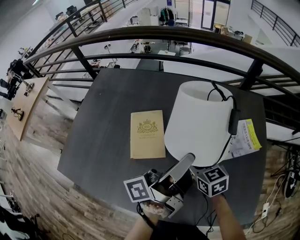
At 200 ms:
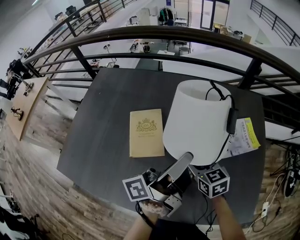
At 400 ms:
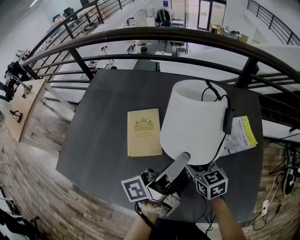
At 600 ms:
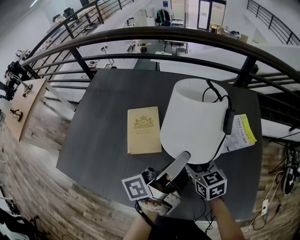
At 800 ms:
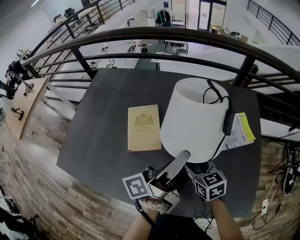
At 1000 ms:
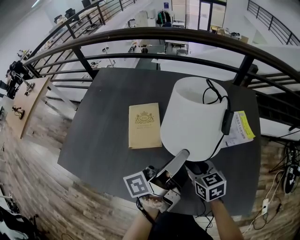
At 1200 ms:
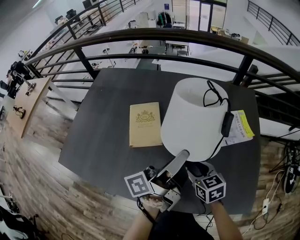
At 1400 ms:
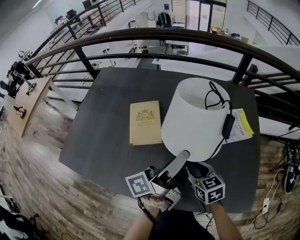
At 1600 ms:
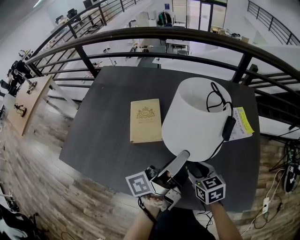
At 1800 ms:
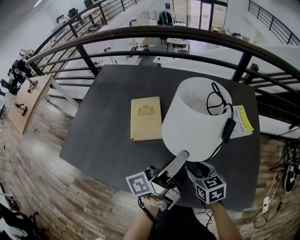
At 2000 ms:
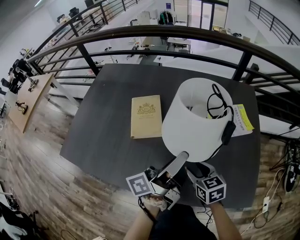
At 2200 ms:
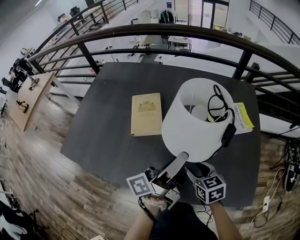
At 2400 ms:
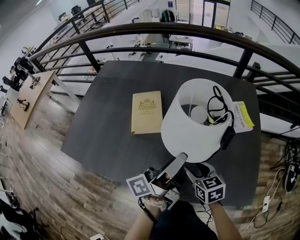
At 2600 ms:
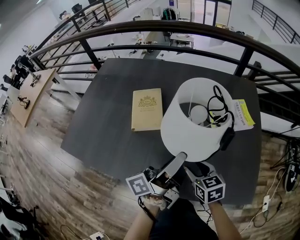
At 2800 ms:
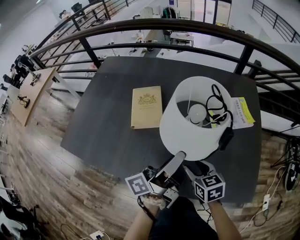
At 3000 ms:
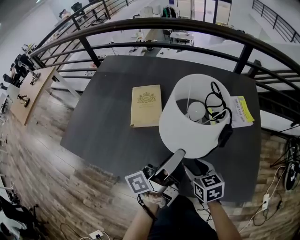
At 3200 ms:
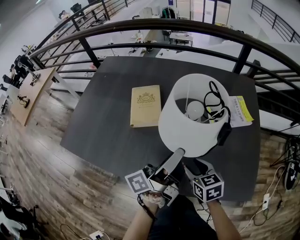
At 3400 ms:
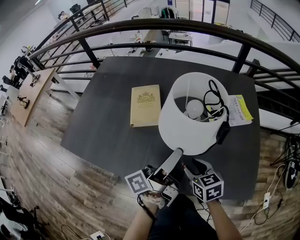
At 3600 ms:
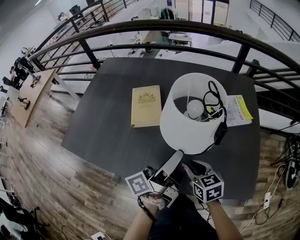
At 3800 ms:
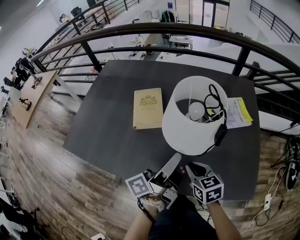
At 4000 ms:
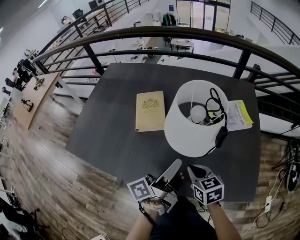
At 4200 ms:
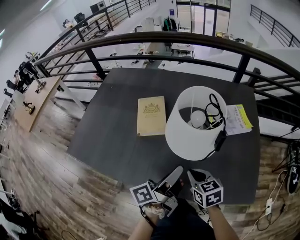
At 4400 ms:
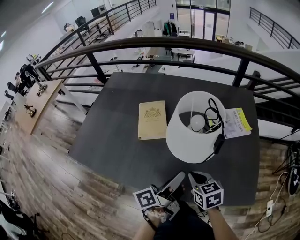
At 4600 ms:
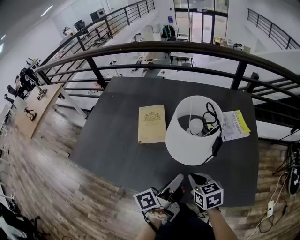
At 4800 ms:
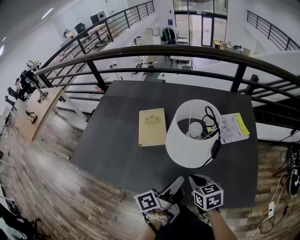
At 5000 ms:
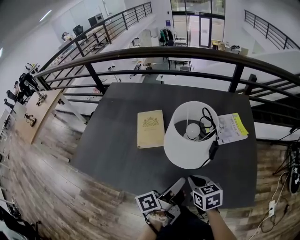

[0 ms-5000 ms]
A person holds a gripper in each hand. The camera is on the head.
0 ms to 1600 ms: The right gripper changes place by some 15 cm.
1600 ms to 3400 ms: The right gripper changes place by roughly 5 cm.
3400 ms to 5000 ms: The right gripper closes its fingers.

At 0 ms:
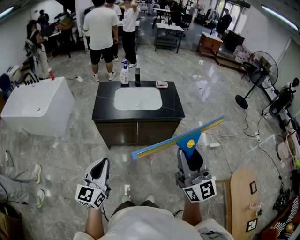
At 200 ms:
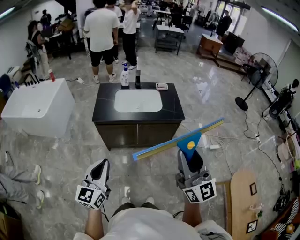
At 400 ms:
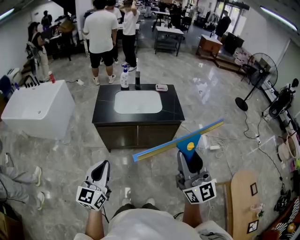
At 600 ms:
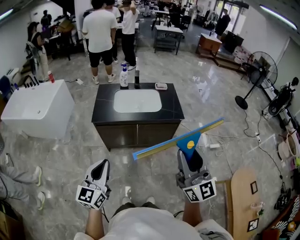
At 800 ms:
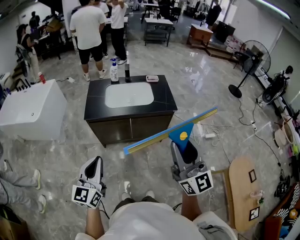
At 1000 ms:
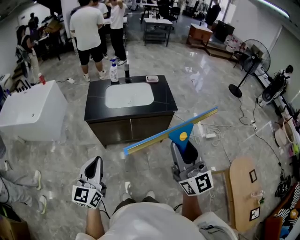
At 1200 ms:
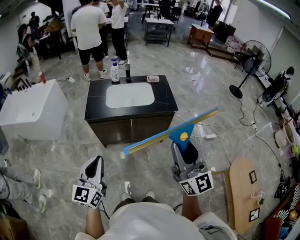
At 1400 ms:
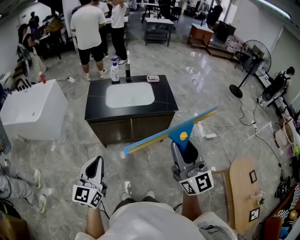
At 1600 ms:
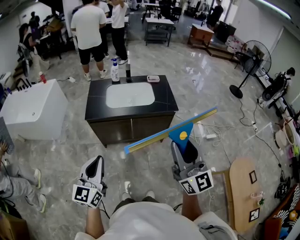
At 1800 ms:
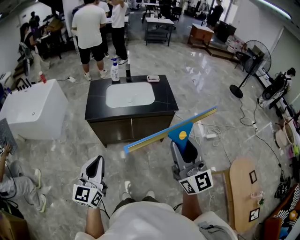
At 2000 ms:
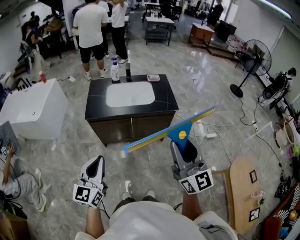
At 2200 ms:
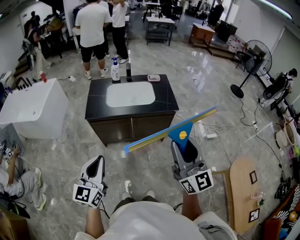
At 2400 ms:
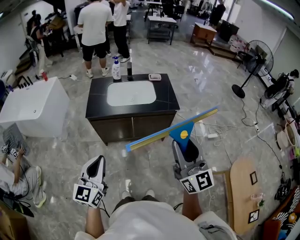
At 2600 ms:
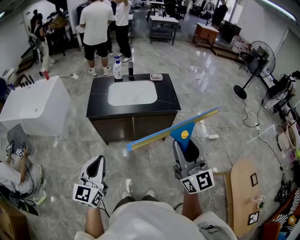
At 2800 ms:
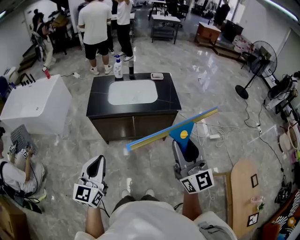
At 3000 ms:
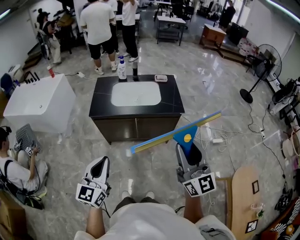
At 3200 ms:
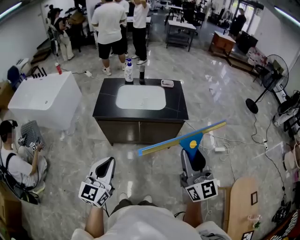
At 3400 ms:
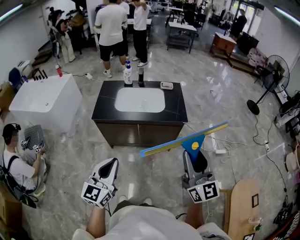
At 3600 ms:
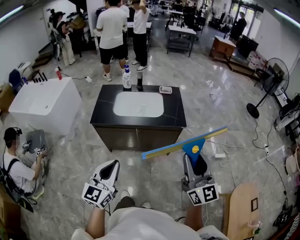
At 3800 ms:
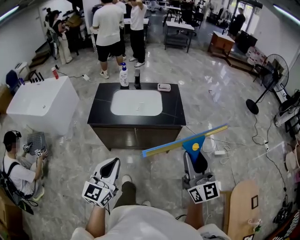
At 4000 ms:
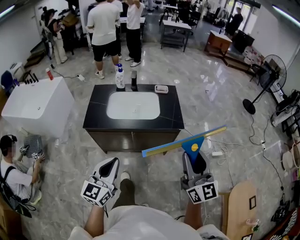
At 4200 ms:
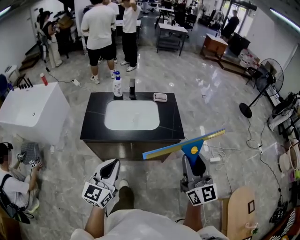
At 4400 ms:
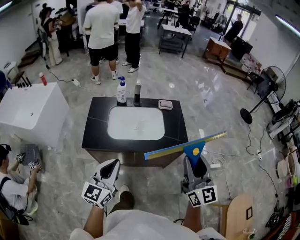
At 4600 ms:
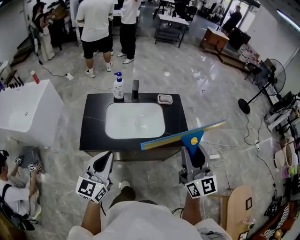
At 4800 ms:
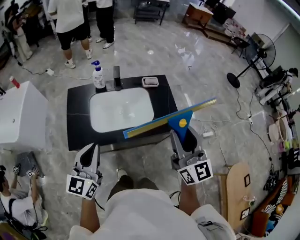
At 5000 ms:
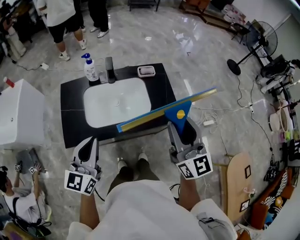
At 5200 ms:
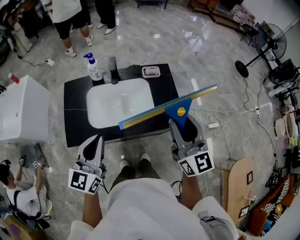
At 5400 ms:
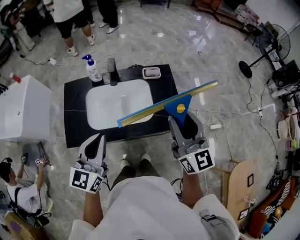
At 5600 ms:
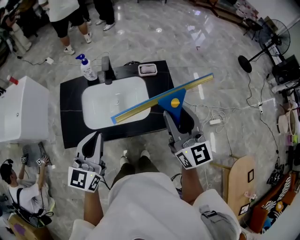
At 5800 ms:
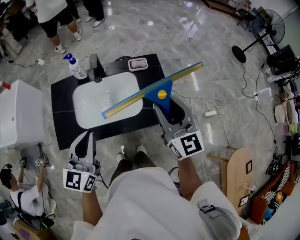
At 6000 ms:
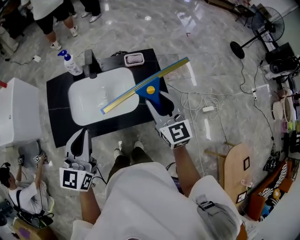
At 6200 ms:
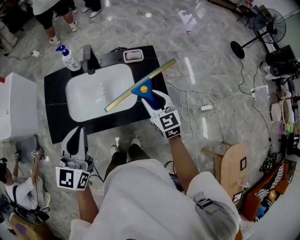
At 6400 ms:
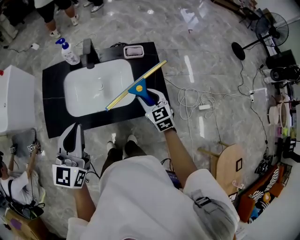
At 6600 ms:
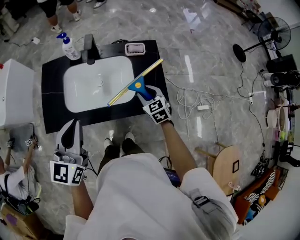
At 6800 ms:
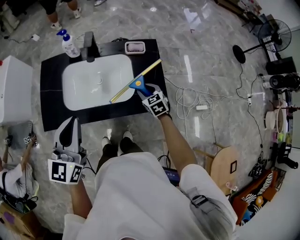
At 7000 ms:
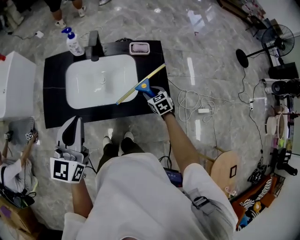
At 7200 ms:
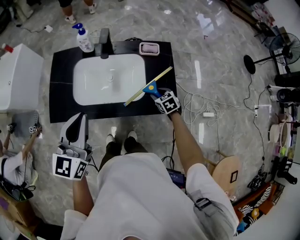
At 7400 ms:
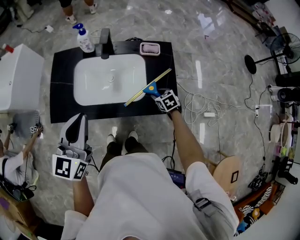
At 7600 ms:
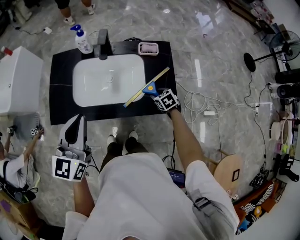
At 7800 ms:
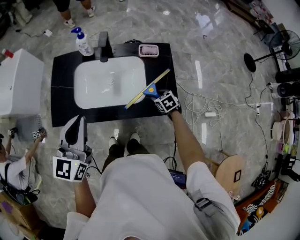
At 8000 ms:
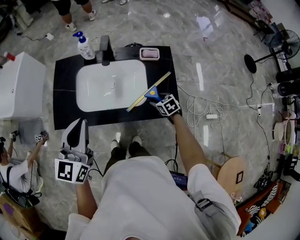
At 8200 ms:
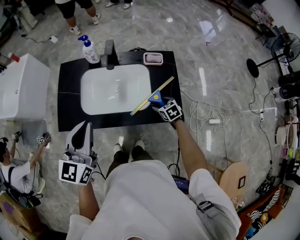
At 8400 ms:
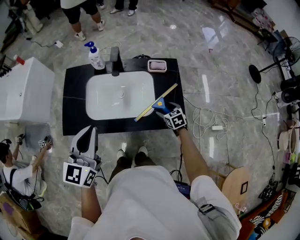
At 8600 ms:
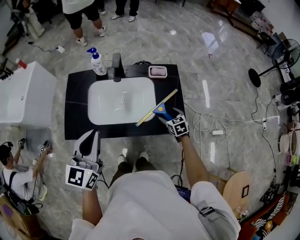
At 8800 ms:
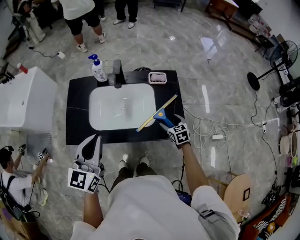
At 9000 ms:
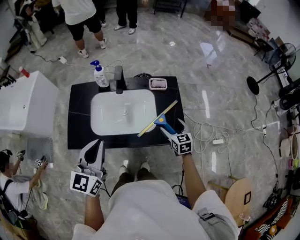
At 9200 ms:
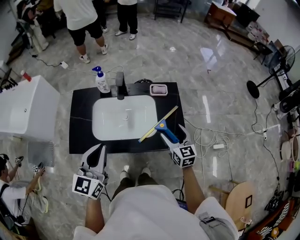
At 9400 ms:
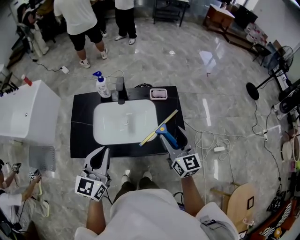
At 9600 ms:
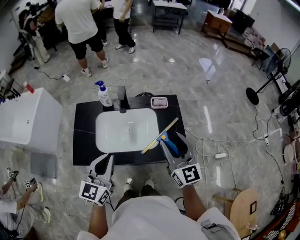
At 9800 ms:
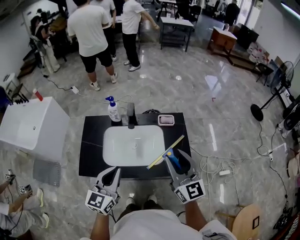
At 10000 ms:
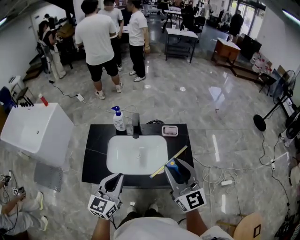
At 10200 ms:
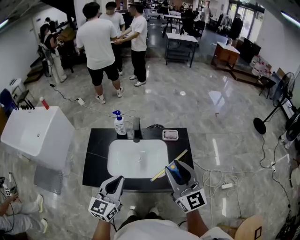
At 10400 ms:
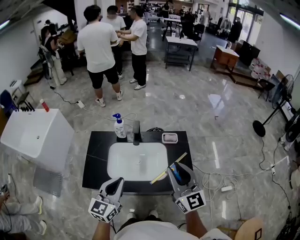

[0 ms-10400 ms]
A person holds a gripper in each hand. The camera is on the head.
0 ms to 1400 ms: The two grippers keep their place.
1400 ms to 3000 ms: The right gripper shifts by some 5 cm.
3000 ms to 4400 ms: The grippers both shift forward by approximately 25 cm.
4400 ms to 6000 ms: The right gripper shifts roughly 30 cm forward and downward, and changes its angle by approximately 20 degrees; the left gripper is displaced forward by roughly 20 cm.
6000 ms to 7400 ms: The right gripper shifts roughly 30 cm downward, and angles its fingers downward, by roughly 50 degrees.
7400 ms to 9000 ms: The right gripper shifts approximately 10 cm upward, rotates approximately 30 degrees, and opens its fingers.
9000 ms to 10400 ms: The right gripper travels upward by some 30 cm, angles its fingers upward, by about 40 degrees, and closes its fingers.

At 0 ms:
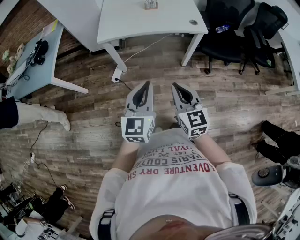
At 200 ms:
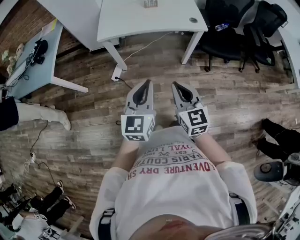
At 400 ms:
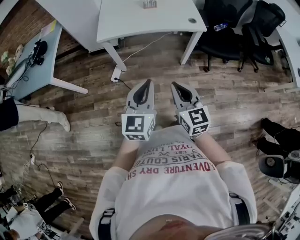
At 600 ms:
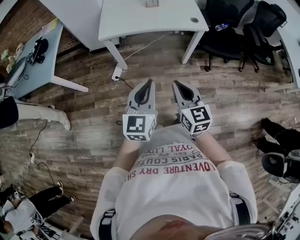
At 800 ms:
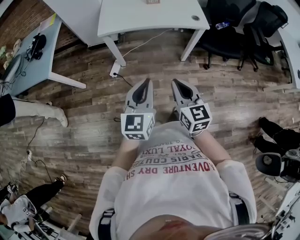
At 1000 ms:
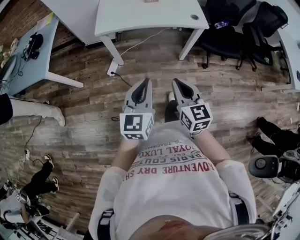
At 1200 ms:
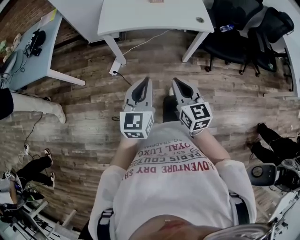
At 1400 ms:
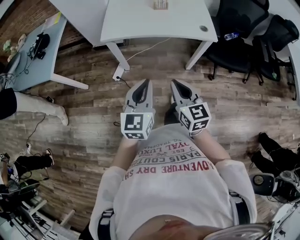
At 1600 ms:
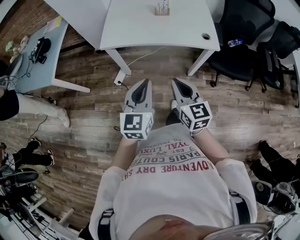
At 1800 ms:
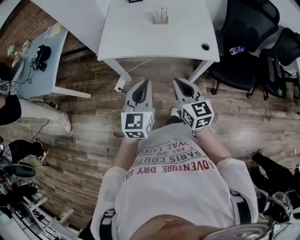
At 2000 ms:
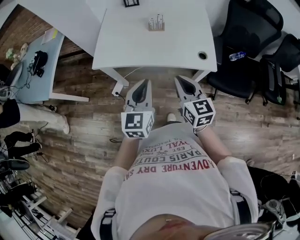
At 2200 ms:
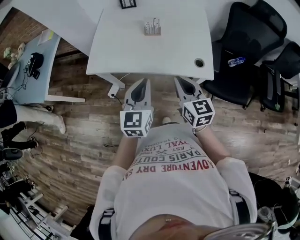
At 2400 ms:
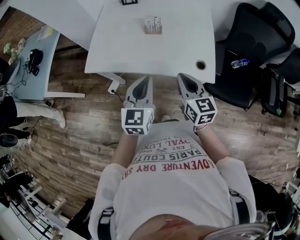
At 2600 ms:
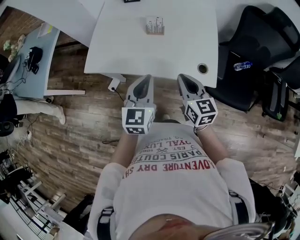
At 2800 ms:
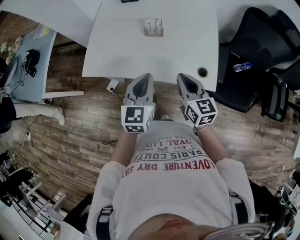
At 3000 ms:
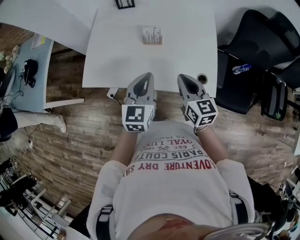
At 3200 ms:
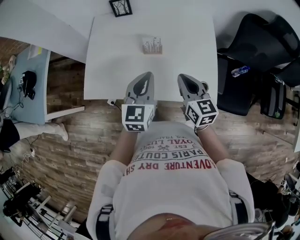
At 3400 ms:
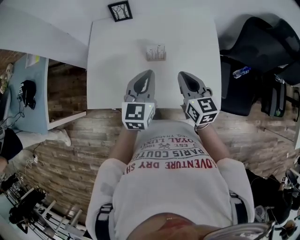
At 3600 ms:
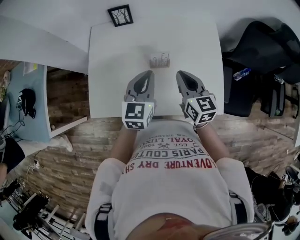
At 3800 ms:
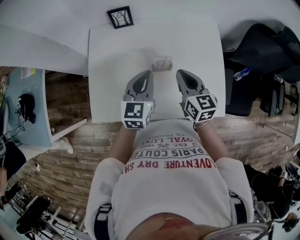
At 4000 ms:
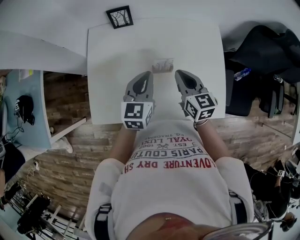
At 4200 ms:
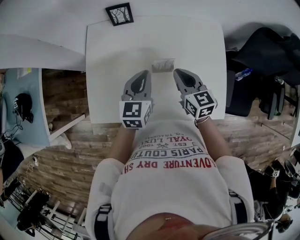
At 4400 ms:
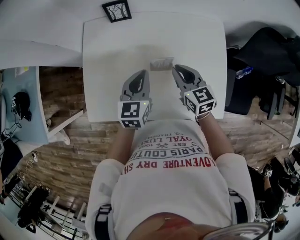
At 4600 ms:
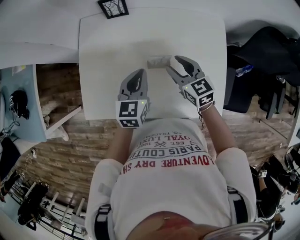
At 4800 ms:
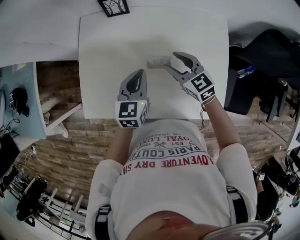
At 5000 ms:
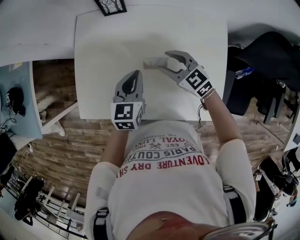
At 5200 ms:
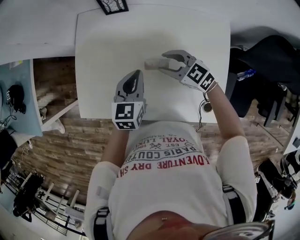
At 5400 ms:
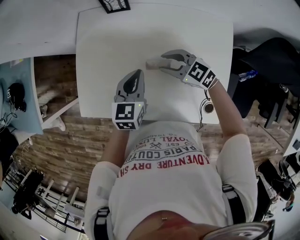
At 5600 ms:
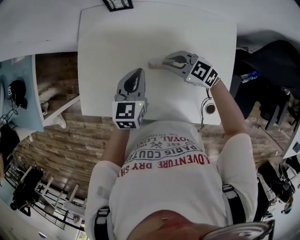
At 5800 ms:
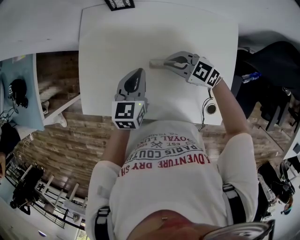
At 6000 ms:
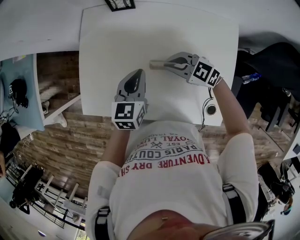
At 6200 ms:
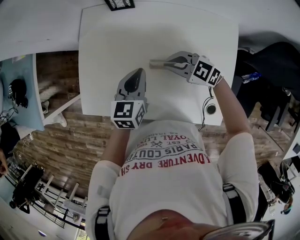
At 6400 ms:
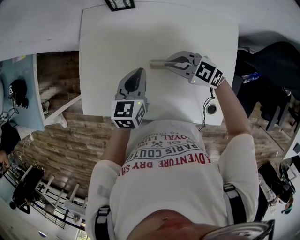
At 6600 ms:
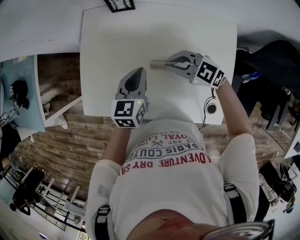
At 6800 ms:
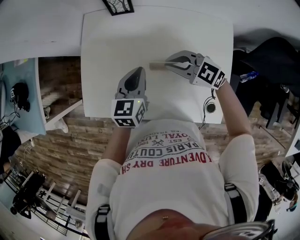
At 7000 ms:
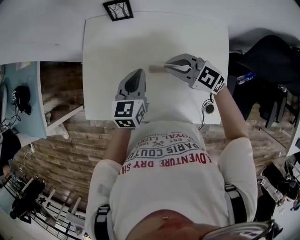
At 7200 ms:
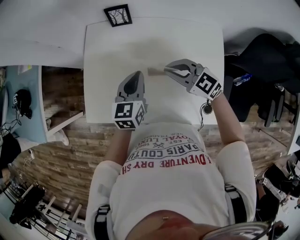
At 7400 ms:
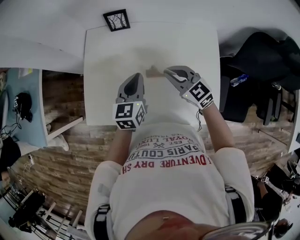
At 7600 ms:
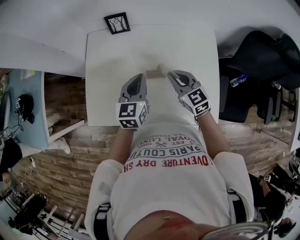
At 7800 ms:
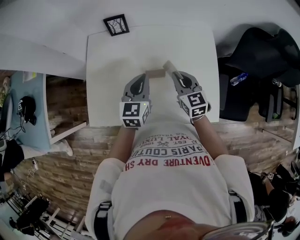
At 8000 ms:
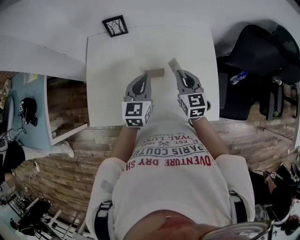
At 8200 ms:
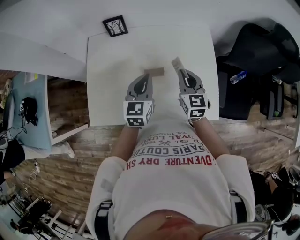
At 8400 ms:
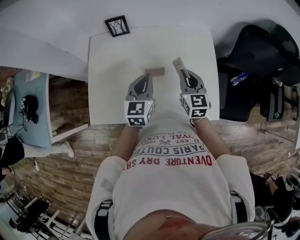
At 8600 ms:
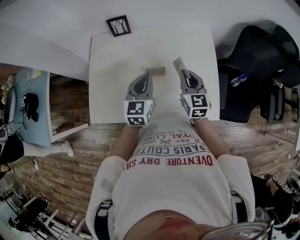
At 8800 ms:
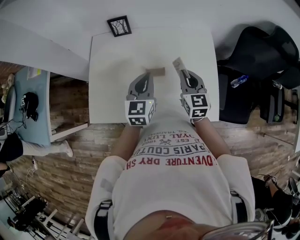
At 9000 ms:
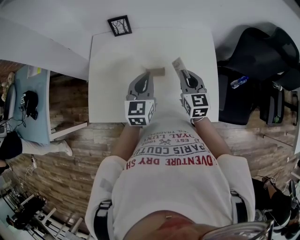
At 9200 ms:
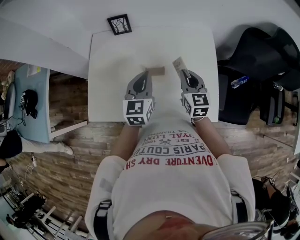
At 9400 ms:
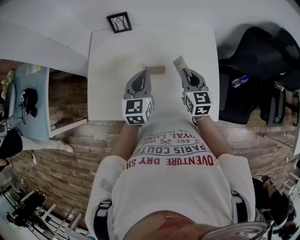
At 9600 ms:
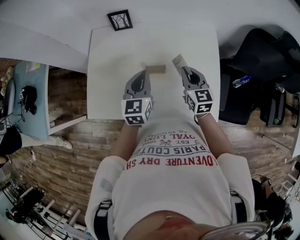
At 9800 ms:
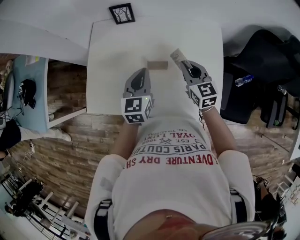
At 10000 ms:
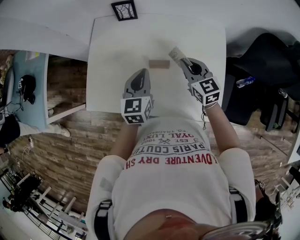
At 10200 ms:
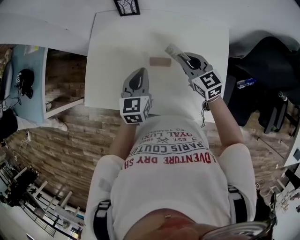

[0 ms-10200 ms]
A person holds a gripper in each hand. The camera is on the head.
0 ms to 1400 ms: The two grippers go roughly 10 cm forward.
1400 ms to 3000 ms: The two grippers travel together, forward and to the right, approximately 40 cm.
3000 ms to 4400 ms: The grippers both shift forward by about 20 cm.
4400 ms to 5800 ms: The right gripper is displaced downward by roughly 5 cm, changes its angle by roughly 50 degrees, and opens, then closes again.
5800 ms to 7200 ms: The right gripper moves upward, approximately 10 cm.
7200 ms to 8800 ms: The right gripper moves some 10 cm, and changes its angle by some 60 degrees; the left gripper moves about 10 cm.
8800 ms to 10200 ms: The right gripper is displaced forward by approximately 5 cm, and rotates roughly 30 degrees. The left gripper changes place by some 5 cm.
